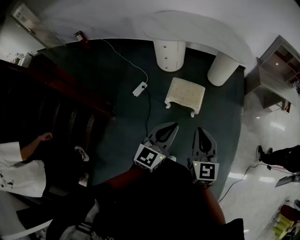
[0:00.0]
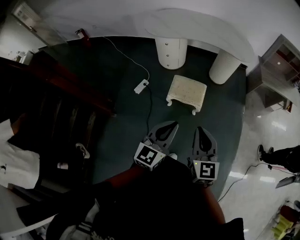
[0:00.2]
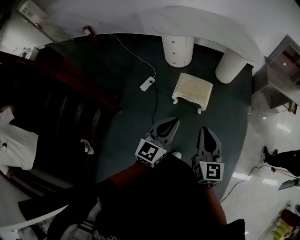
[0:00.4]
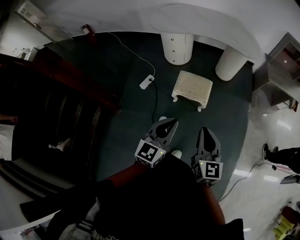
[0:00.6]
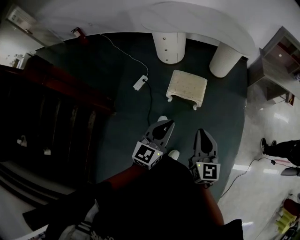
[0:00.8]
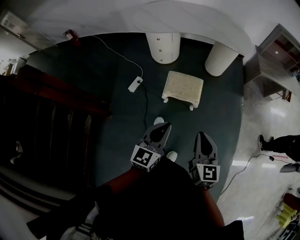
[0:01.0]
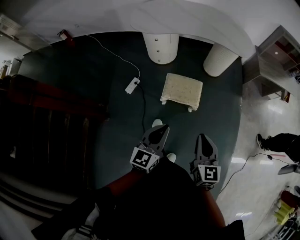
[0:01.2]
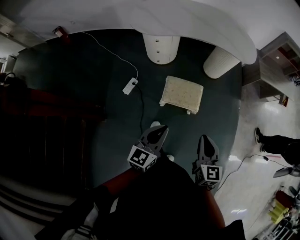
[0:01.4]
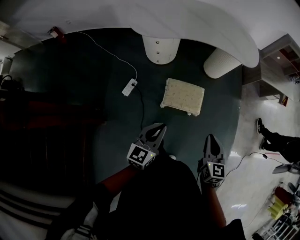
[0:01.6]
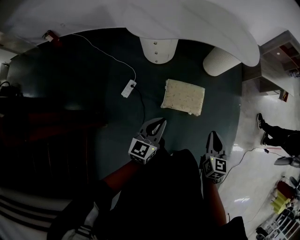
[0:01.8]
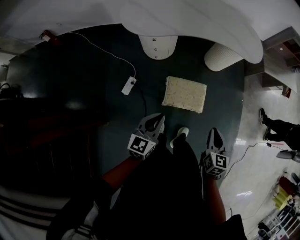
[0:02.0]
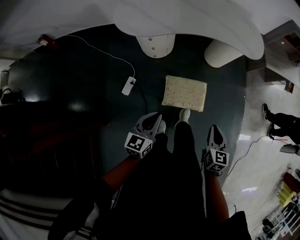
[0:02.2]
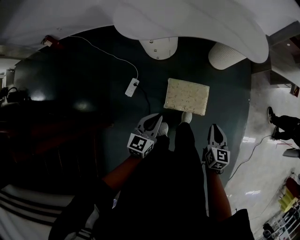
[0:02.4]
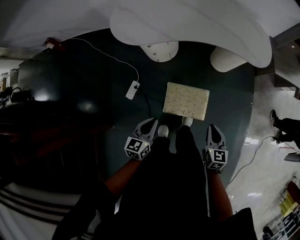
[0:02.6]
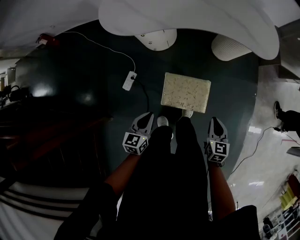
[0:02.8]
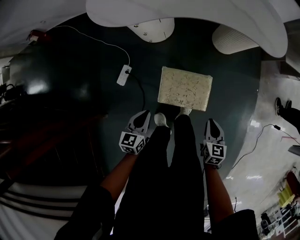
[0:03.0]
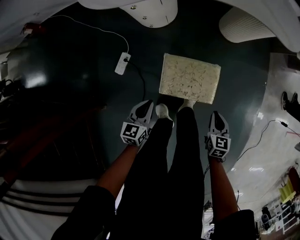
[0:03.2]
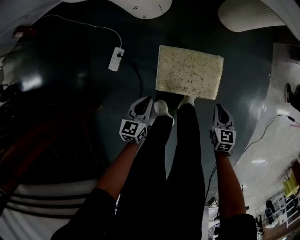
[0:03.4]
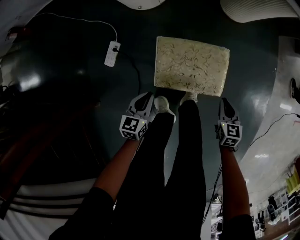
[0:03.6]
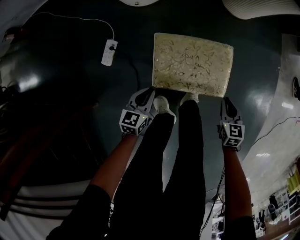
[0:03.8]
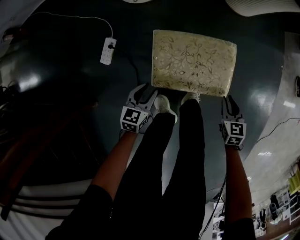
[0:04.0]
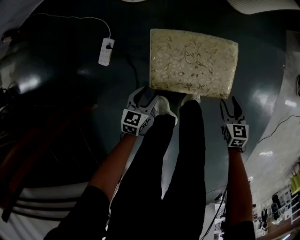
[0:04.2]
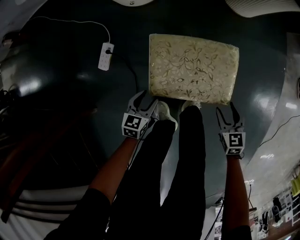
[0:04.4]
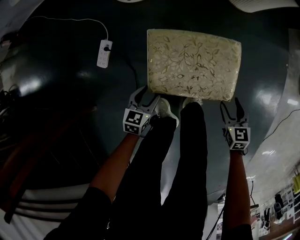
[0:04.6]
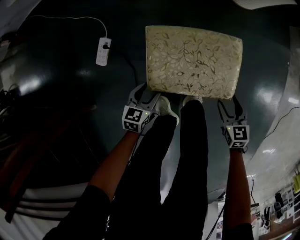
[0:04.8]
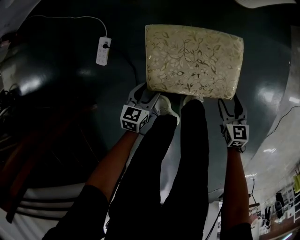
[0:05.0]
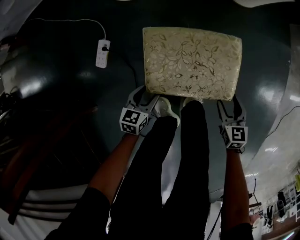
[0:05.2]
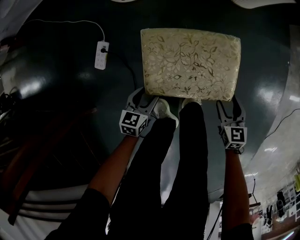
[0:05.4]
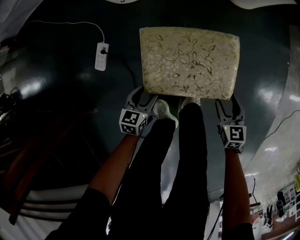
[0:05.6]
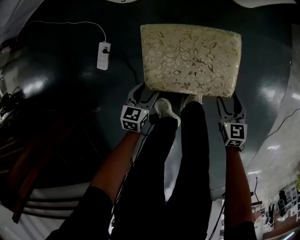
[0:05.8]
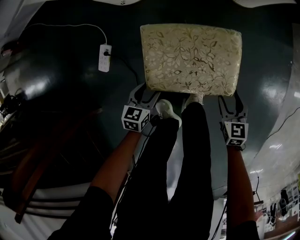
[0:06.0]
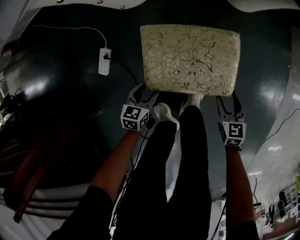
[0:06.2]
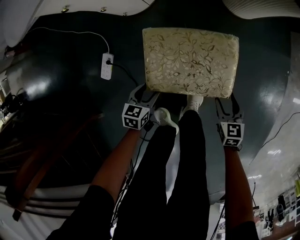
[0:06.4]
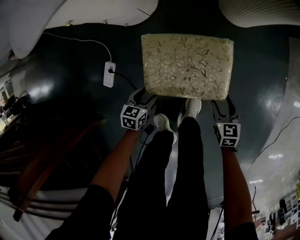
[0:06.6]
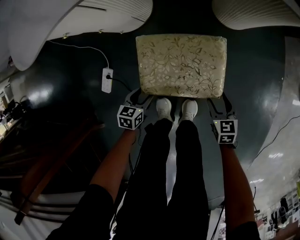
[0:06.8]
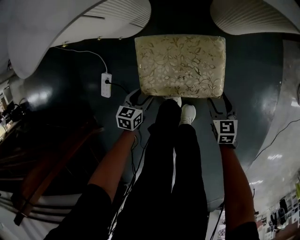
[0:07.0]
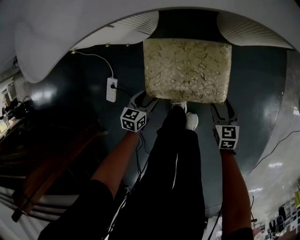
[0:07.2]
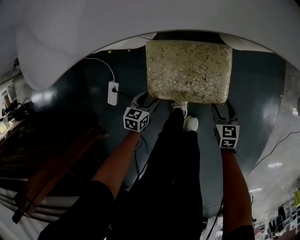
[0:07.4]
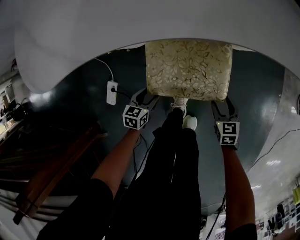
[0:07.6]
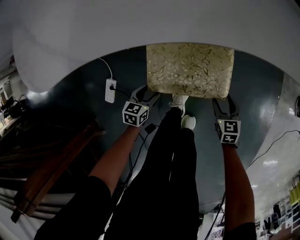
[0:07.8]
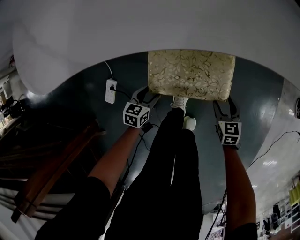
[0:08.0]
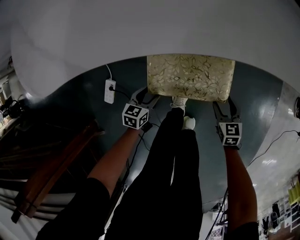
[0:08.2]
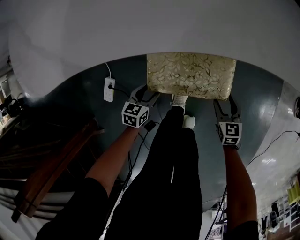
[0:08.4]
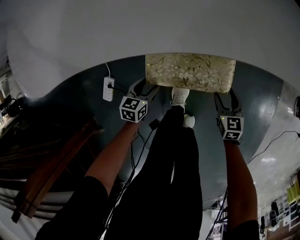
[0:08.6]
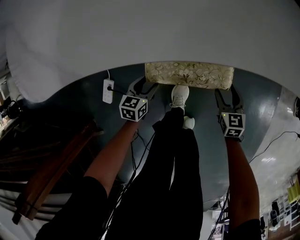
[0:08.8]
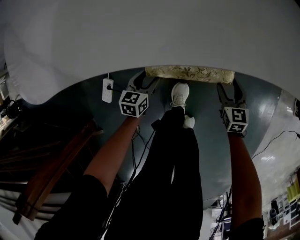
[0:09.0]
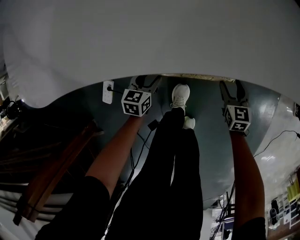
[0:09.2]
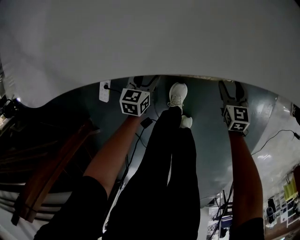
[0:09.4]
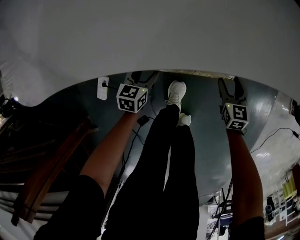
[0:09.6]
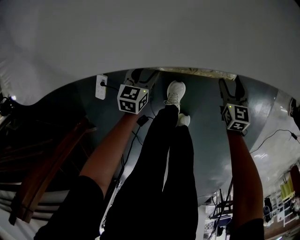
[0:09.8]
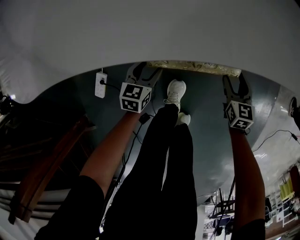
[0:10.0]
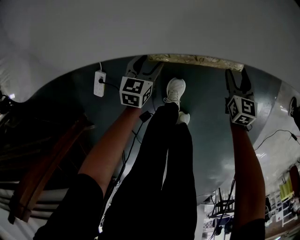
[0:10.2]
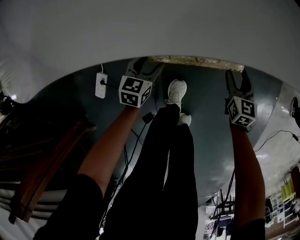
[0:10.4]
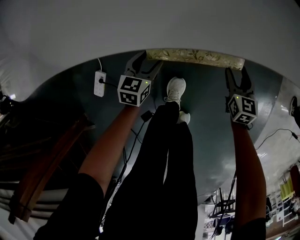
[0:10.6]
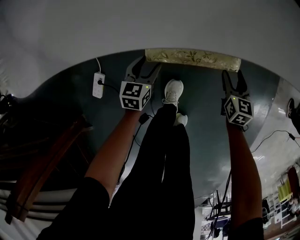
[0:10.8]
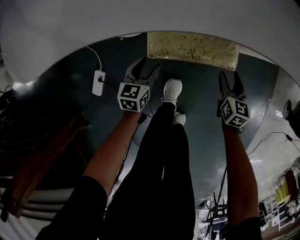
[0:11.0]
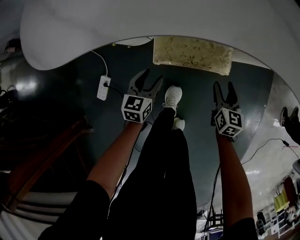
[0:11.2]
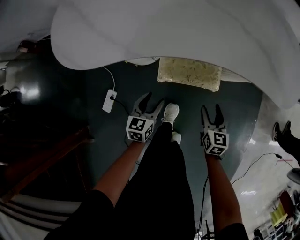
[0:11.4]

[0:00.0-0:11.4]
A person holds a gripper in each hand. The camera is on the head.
0:00.0 to 0:01.4: The right gripper is displaced forward and downward by about 15 cm; the left gripper moves forward, downward and to the left, some 20 cm.
0:01.4 to 0:02.8: The left gripper shifts about 30 cm forward, downward and to the left, and rotates roughly 20 degrees. The right gripper moves forward and downward, about 35 cm.
0:02.8 to 0:04.2: Both grippers travel together downward, about 40 cm. The left gripper changes its angle by roughly 20 degrees, and opens its fingers; the right gripper opens its fingers.
0:04.2 to 0:08.6: The grippers stay close to where they were, moving slightly.
0:08.6 to 0:10.0: Both grippers travel together forward, approximately 10 cm.
0:10.0 to 0:11.4: The two grippers go roughly 20 cm upward.

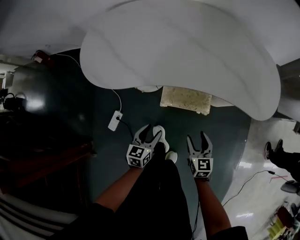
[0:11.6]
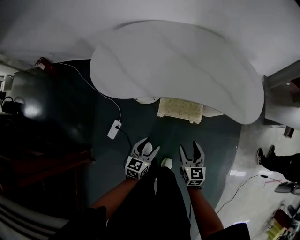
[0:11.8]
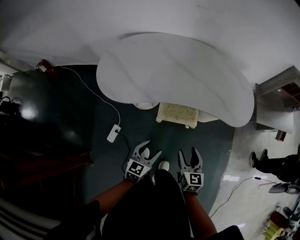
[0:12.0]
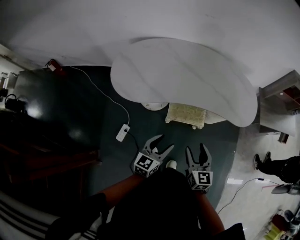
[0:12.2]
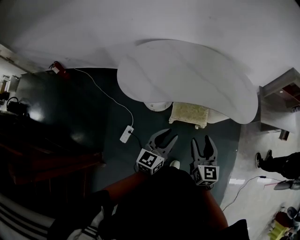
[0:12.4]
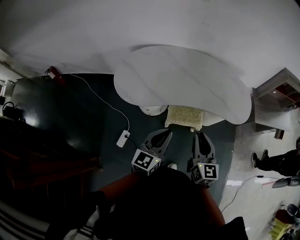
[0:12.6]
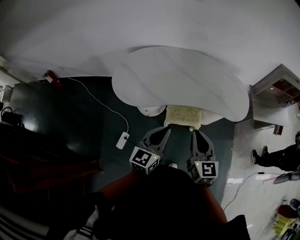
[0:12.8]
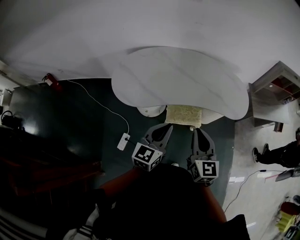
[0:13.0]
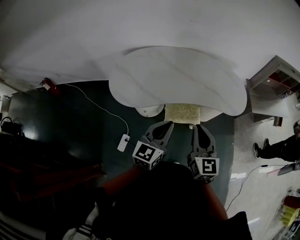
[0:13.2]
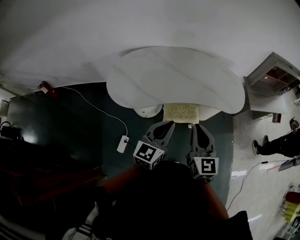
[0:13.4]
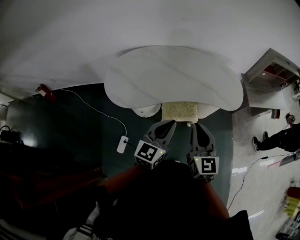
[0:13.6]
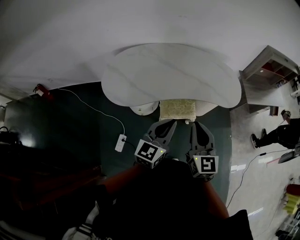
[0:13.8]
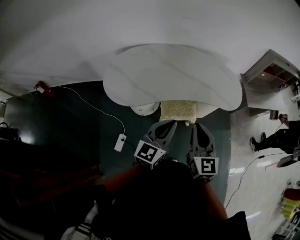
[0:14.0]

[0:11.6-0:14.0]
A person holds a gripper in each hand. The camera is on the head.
0:11.6 to 0:12.8: The grippers both shift upward by some 40 cm. The left gripper swivels roughly 30 degrees, and closes. The right gripper closes up.
0:12.8 to 0:14.0: The grippers make only small movements.

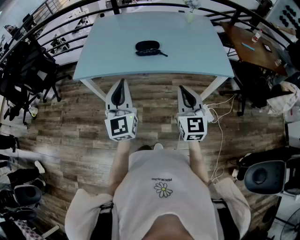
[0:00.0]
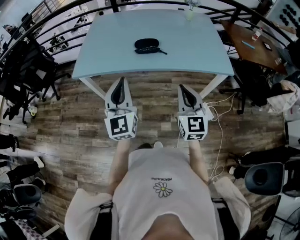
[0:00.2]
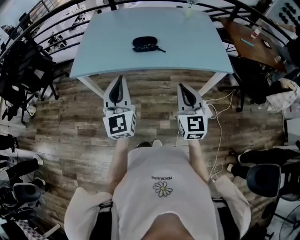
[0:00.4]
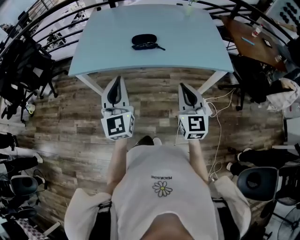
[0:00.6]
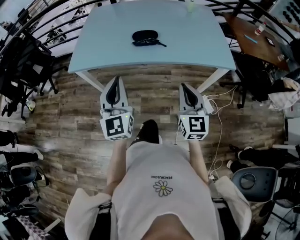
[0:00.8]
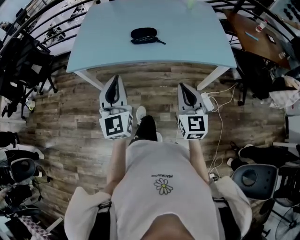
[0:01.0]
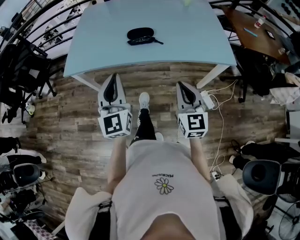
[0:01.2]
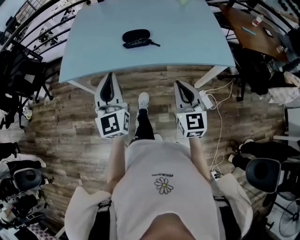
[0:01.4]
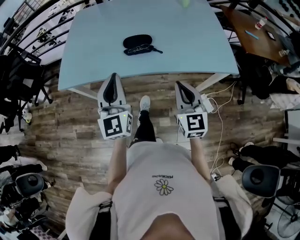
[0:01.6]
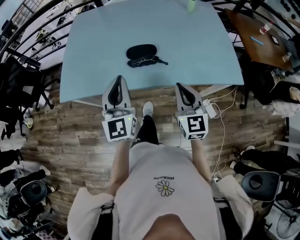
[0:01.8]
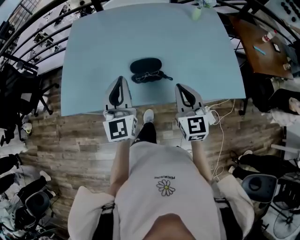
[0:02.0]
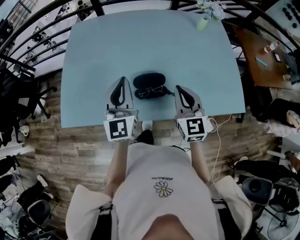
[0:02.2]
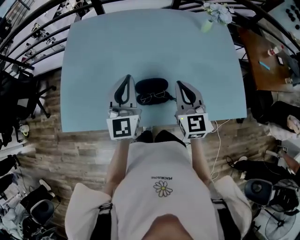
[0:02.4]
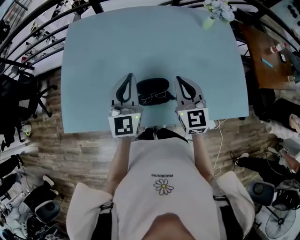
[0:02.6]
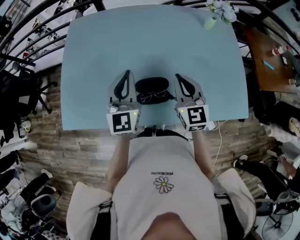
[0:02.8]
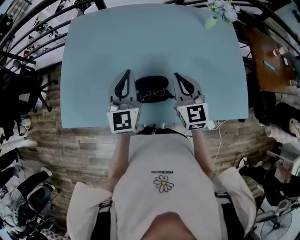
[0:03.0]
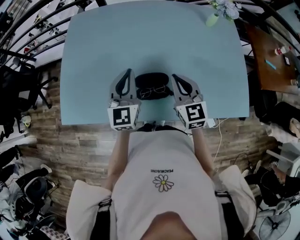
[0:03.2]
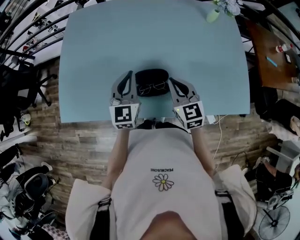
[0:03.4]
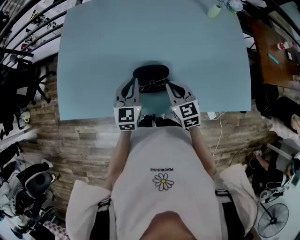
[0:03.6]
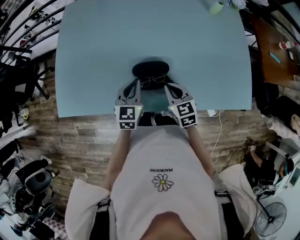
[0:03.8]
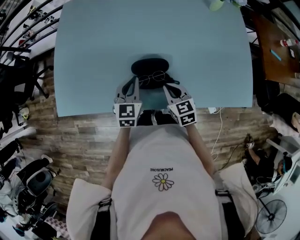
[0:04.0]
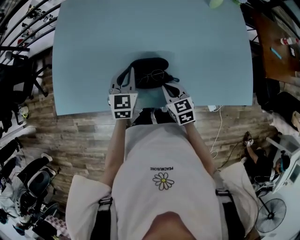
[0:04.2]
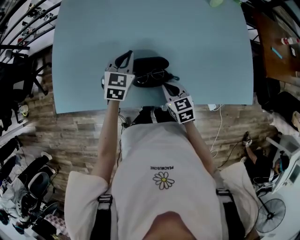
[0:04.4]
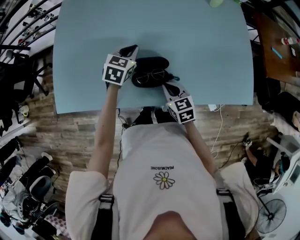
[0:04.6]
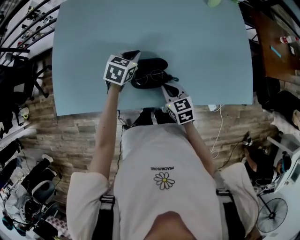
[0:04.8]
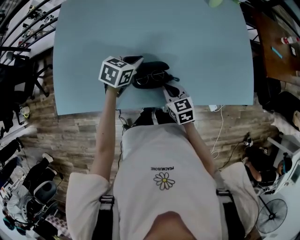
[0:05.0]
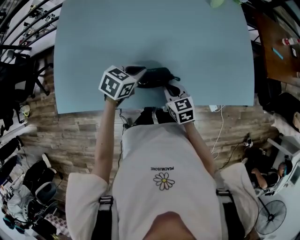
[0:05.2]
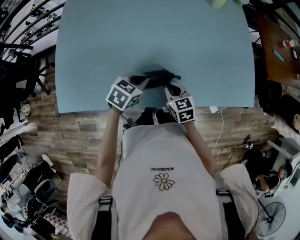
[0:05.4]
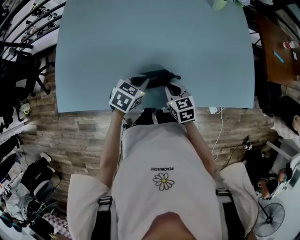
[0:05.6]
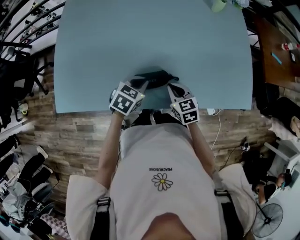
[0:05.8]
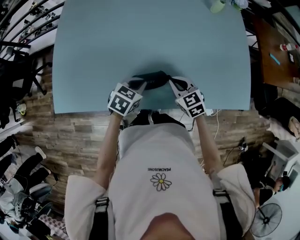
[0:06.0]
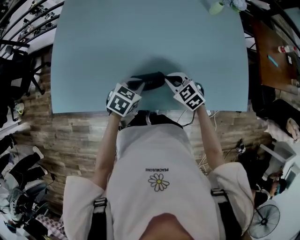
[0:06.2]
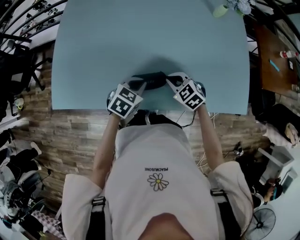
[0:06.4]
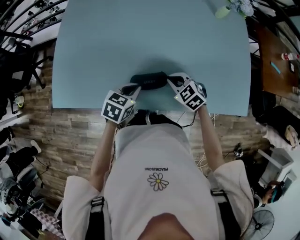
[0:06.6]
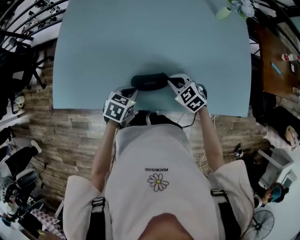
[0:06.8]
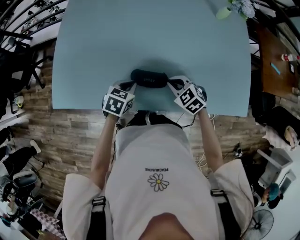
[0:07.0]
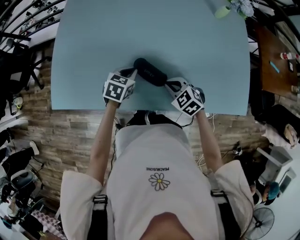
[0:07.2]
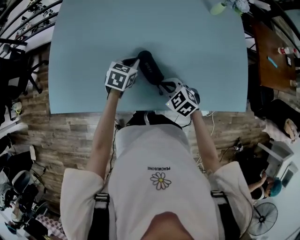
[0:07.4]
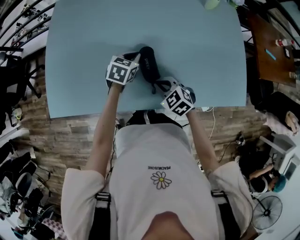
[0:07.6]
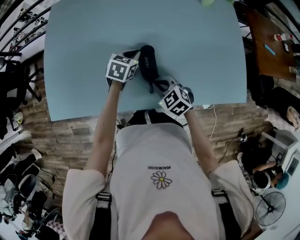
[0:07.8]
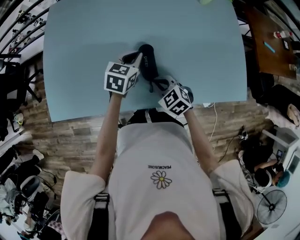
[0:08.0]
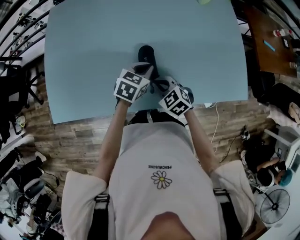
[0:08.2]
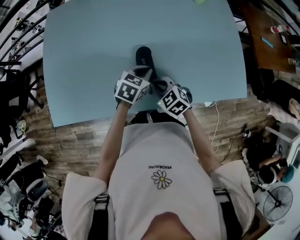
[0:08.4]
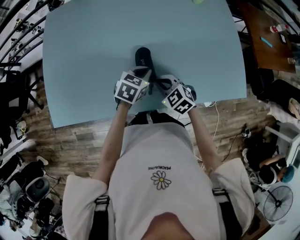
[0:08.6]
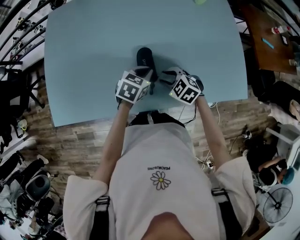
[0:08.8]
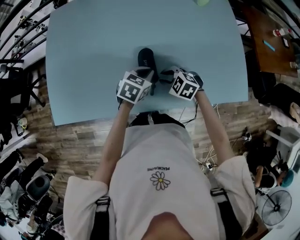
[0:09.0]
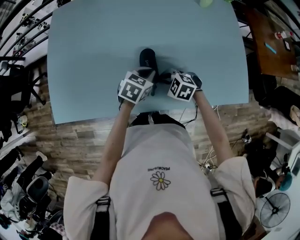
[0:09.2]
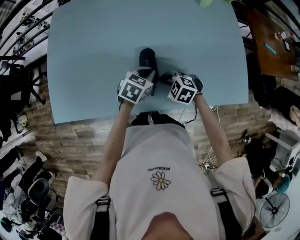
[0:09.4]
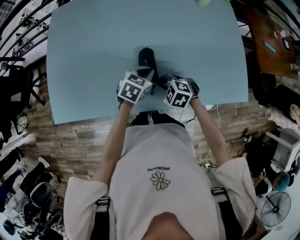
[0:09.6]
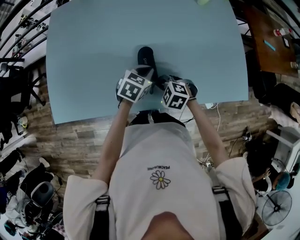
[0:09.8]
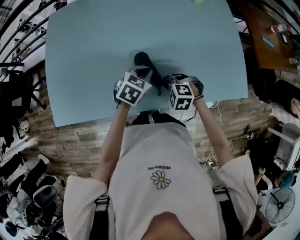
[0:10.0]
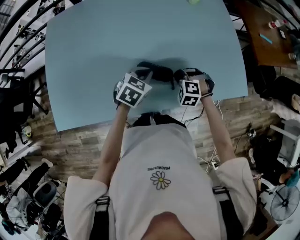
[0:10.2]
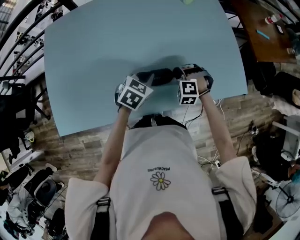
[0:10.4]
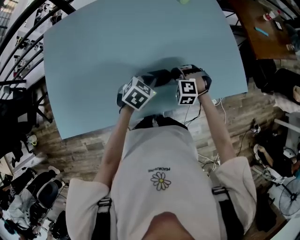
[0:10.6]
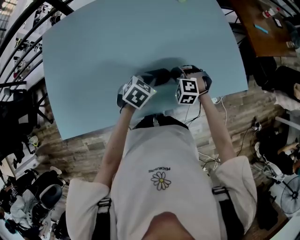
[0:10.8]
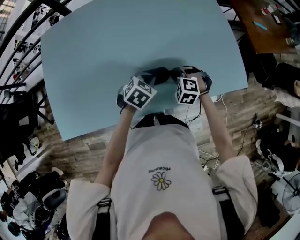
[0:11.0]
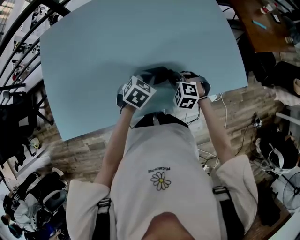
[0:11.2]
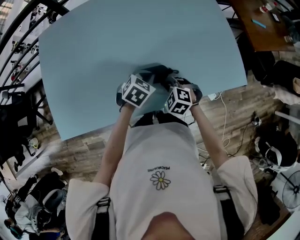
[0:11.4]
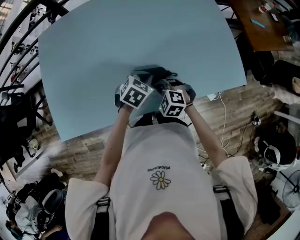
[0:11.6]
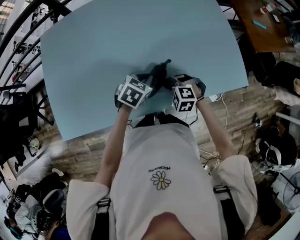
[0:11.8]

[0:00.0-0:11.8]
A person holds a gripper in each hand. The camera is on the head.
0:00.0 to 0:01.4: Both grippers travel together forward, approximately 10 cm.
0:01.4 to 0:03.0: The grippers both shift forward by some 40 cm.
0:03.0 to 0:04.4: The right gripper travels downward and backward by about 20 cm, and rotates roughly 30 degrees. The left gripper goes about 15 cm downward, and tips its fingers downward by approximately 30 degrees.
0:04.4 to 0:06.0: The right gripper moves approximately 5 cm; the left gripper shifts approximately 15 cm backward, to the right and downward, and turns by some 30 degrees.
0:06.0 to 0:07.4: The left gripper travels forward by roughly 10 cm; the right gripper changes its angle by approximately 20 degrees.
0:07.4 to 0:08.8: The right gripper opens its fingers. The left gripper is displaced to the right and backward by some 10 cm.
0:08.8 to 0:10.4: The right gripper moves approximately 10 cm, swivels approximately 40 degrees, and closes.
0:10.4 to 0:11.8: The right gripper moves backward, roughly 5 cm, and swivels about 20 degrees.
